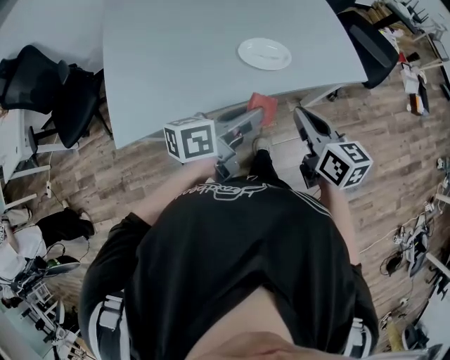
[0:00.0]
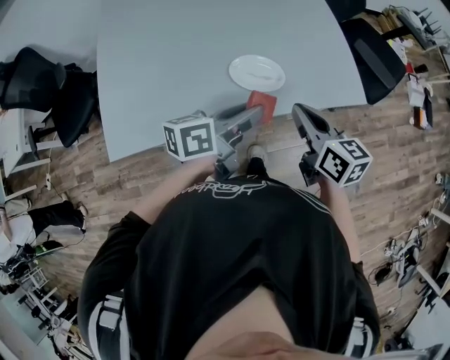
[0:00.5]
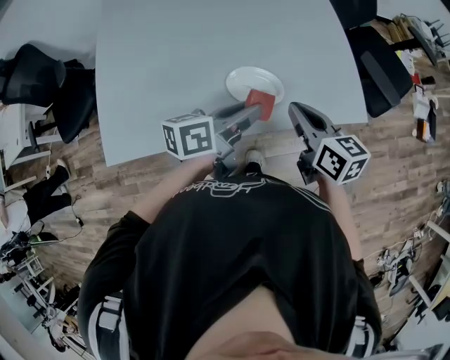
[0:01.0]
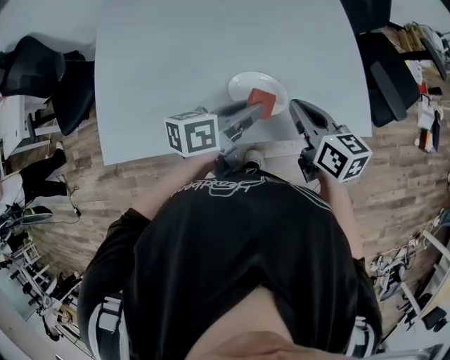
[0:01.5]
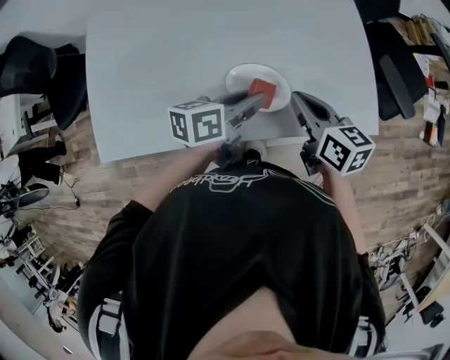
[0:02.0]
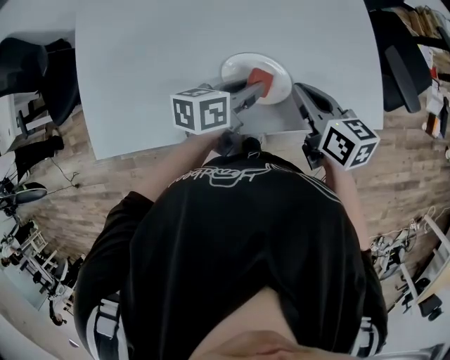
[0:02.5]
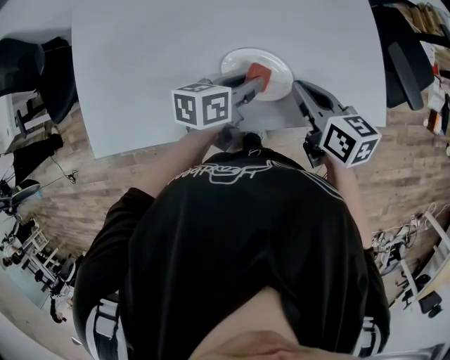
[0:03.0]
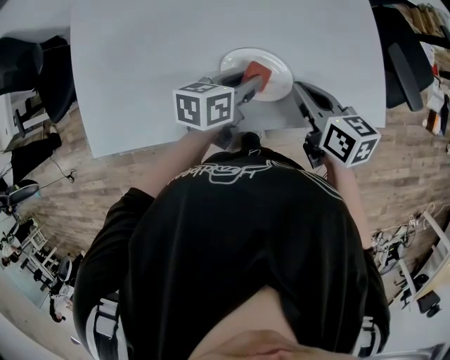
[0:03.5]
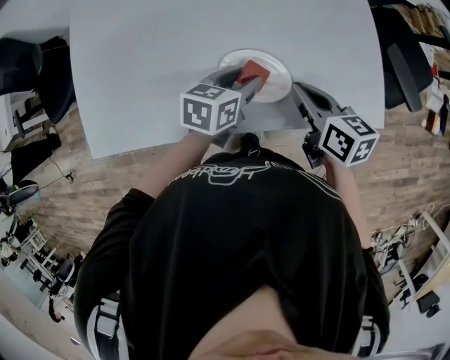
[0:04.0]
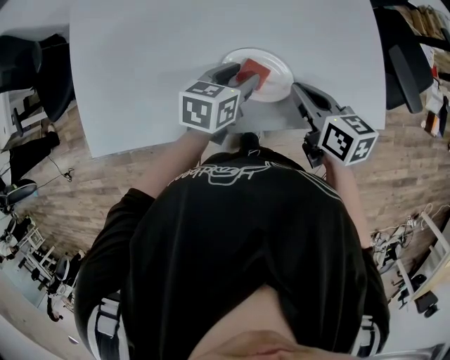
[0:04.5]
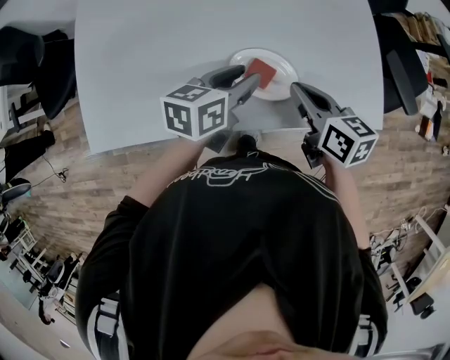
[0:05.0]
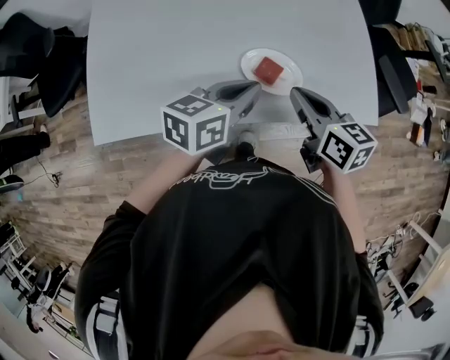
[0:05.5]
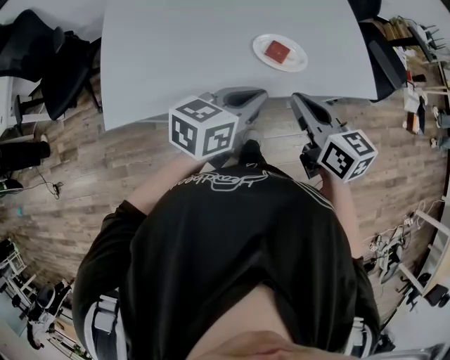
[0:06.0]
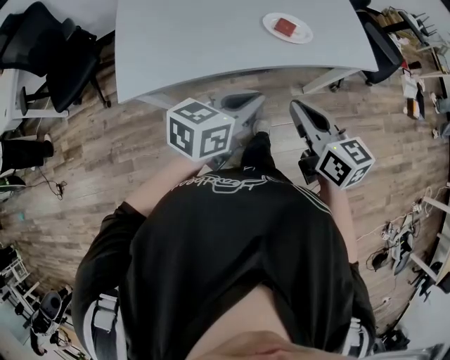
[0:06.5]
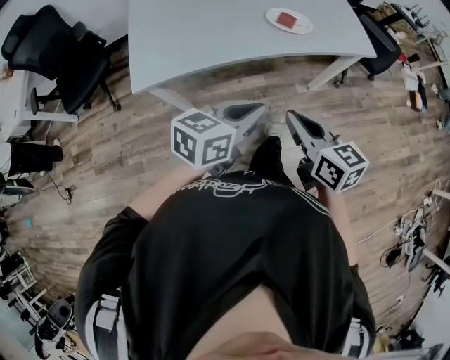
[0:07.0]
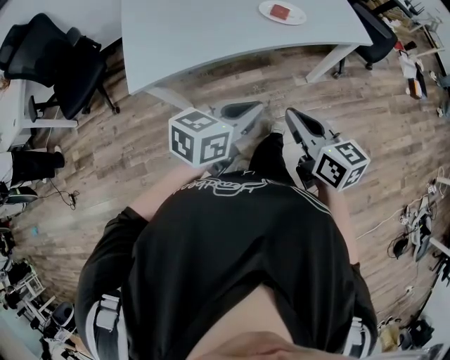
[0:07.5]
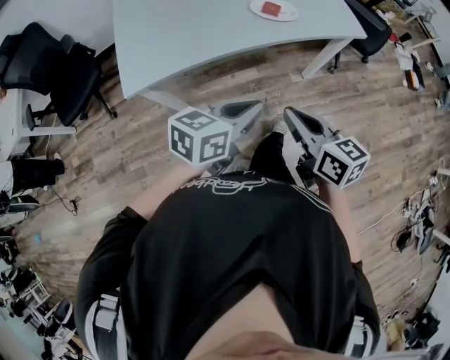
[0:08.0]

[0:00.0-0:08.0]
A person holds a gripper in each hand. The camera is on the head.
0:00.0 to 0:02.0: The left gripper travels forward and downward by about 25 cm. The right gripper moves forward, some 20 cm.
0:02.0 to 0:04.0: The left gripper goes some 5 cm downward, and turns by roughly 30 degrees.
0:04.0 to 0:06.0: The left gripper goes some 25 cm backward and upward, changes its angle by some 20 degrees, and closes its fingers; the right gripper heads backward, upward and to the left, covering roughly 25 cm.
0:06.0 to 0:08.0: The grippers both shift backward by approximately 25 cm.

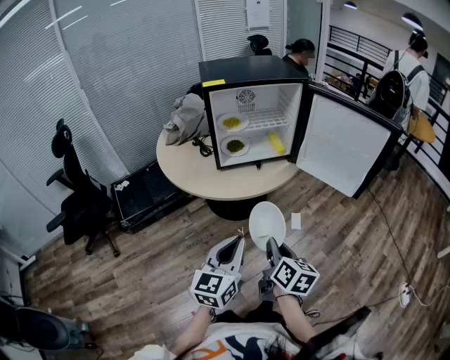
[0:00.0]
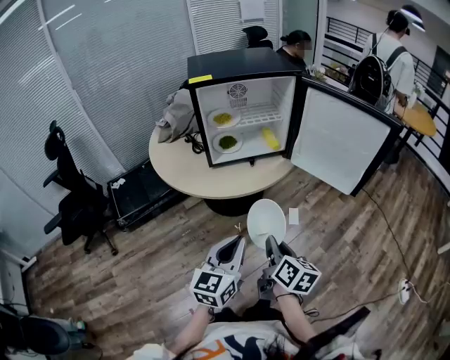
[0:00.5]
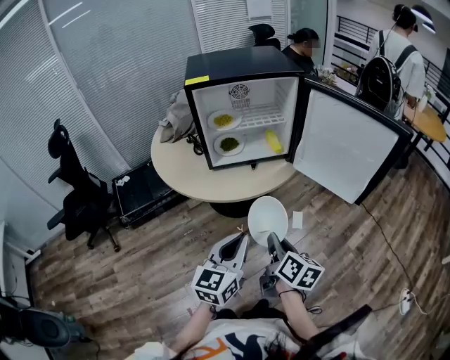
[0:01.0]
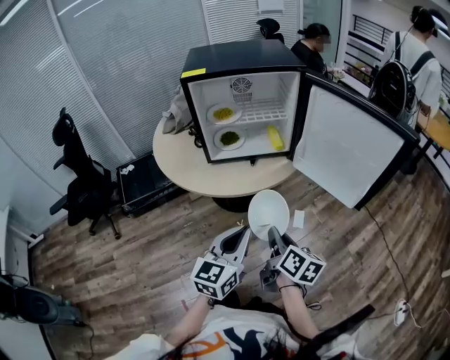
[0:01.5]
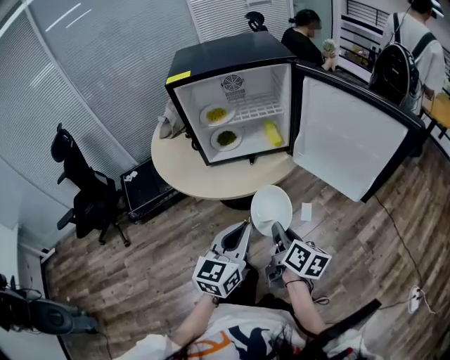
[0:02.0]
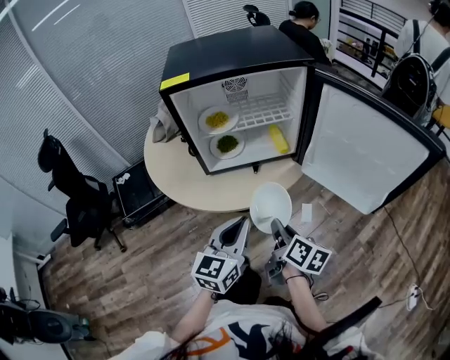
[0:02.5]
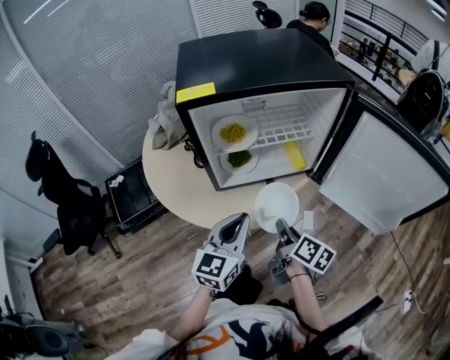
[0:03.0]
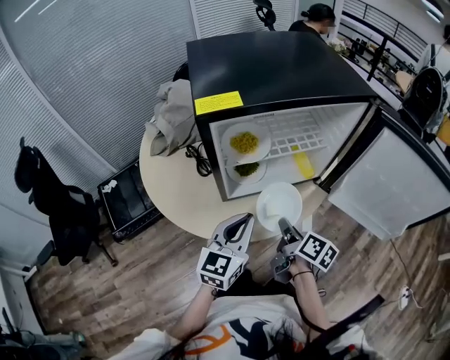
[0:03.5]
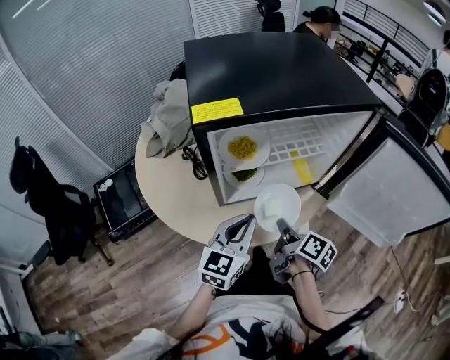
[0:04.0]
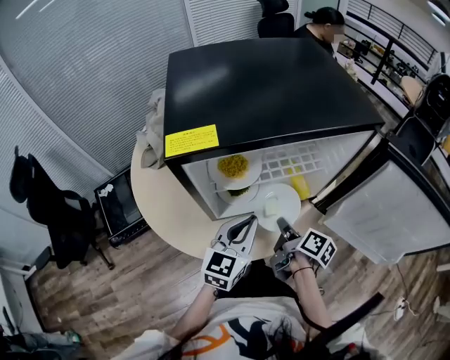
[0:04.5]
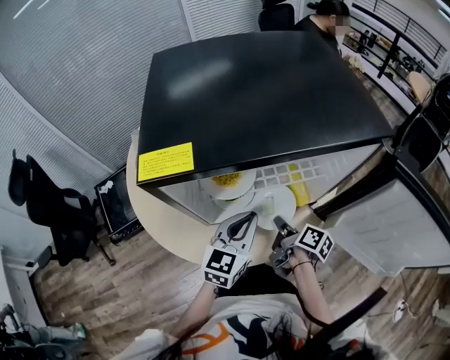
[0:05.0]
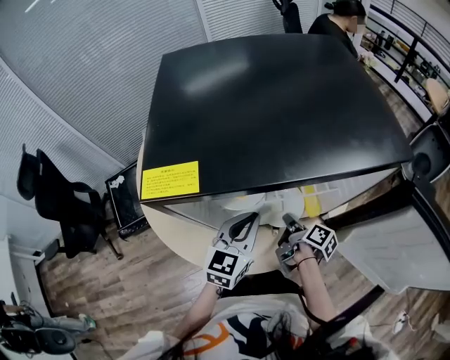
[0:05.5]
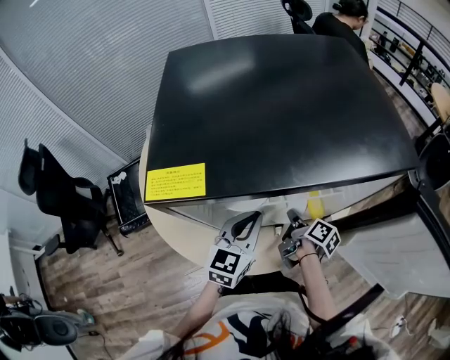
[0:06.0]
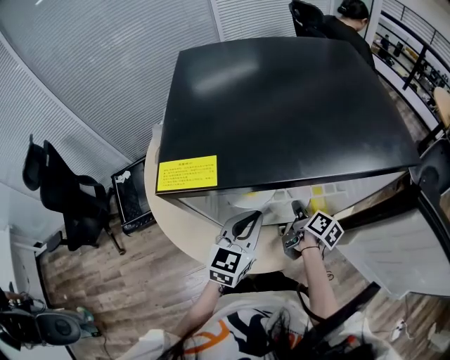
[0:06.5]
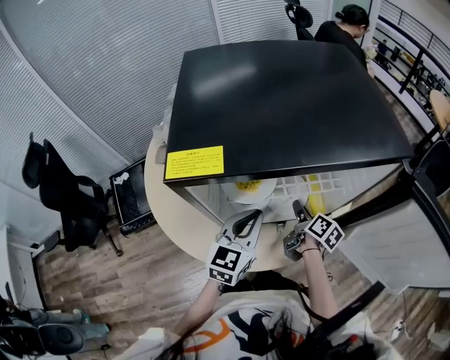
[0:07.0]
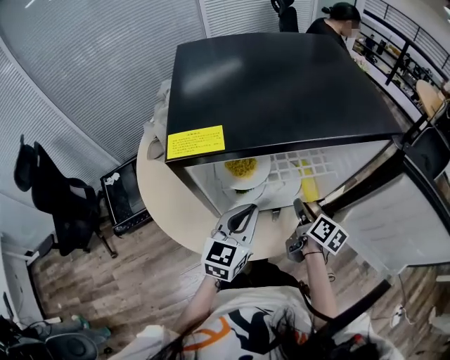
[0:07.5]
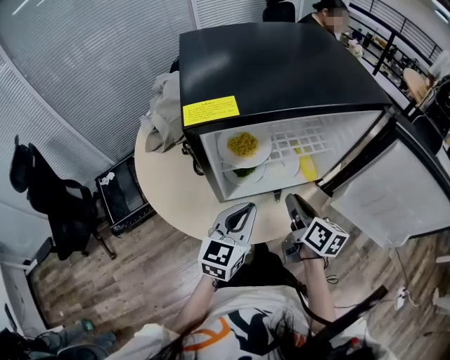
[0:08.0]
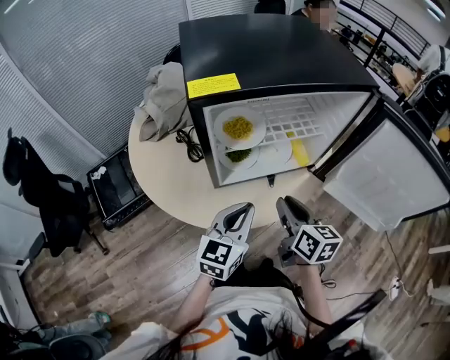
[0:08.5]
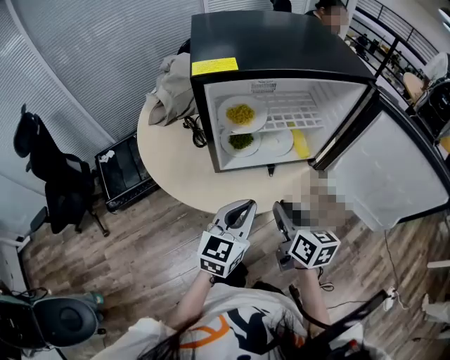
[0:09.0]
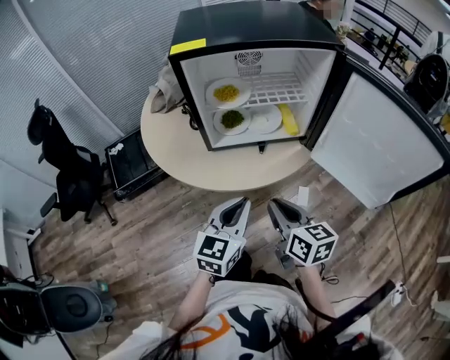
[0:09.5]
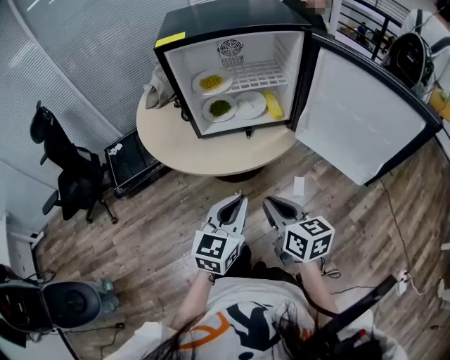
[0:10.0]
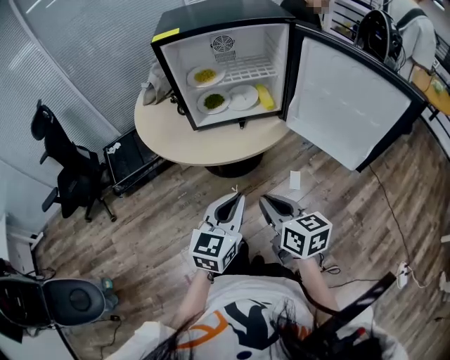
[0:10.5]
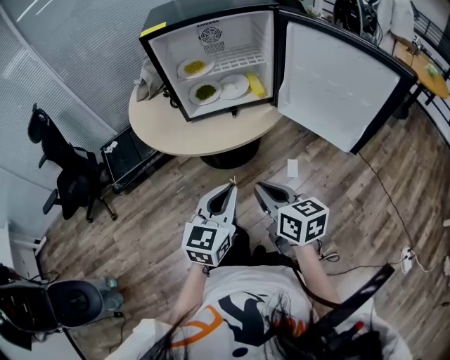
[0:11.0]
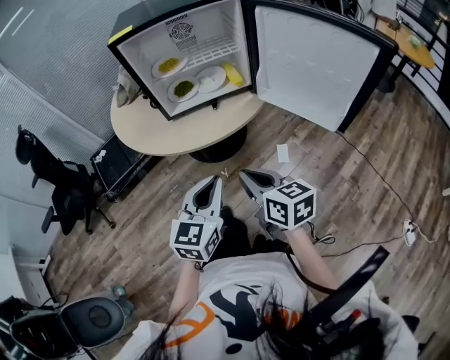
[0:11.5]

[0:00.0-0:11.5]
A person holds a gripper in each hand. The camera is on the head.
0:00.0 to 0:02.0: Both grippers move forward and to the right, roughly 15 cm.
0:02.0 to 0:04.0: The grippers both shift forward and to the left by approximately 25 cm.
0:04.0 to 0:06.0: The right gripper shifts approximately 20 cm forward and downward. The left gripper is displaced forward by approximately 15 cm.
0:06.0 to 0:07.5: The right gripper heads upward, covering about 5 cm, changes its angle by roughly 20 degrees, and opens up.
0:07.5 to 0:09.5: The two grippers go some 25 cm backward. The right gripper changes its angle by about 40 degrees, and closes its fingers.
0:09.5 to 0:11.5: Both grippers move backward, roughly 10 cm.

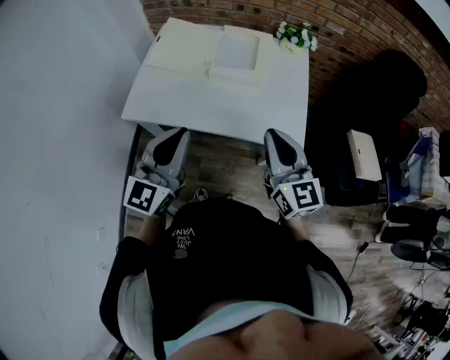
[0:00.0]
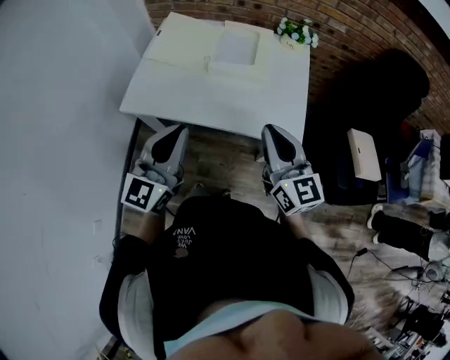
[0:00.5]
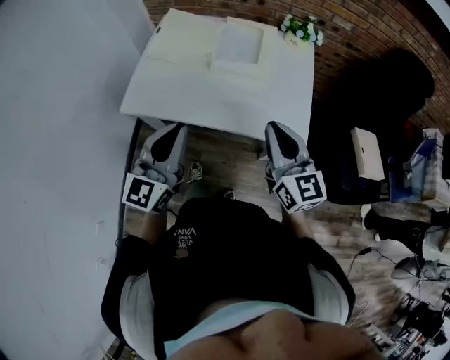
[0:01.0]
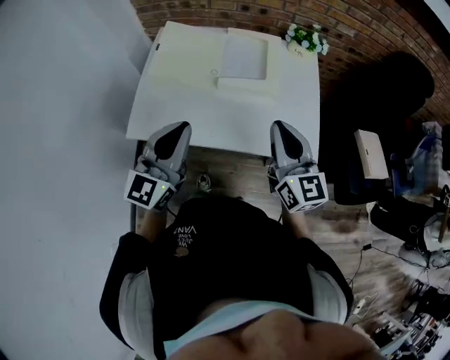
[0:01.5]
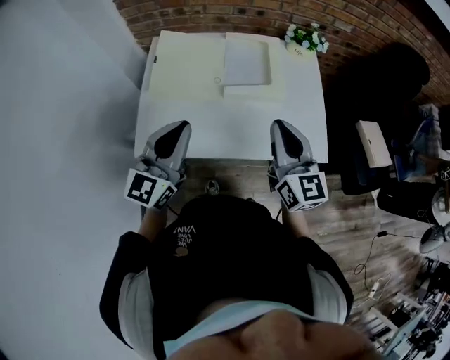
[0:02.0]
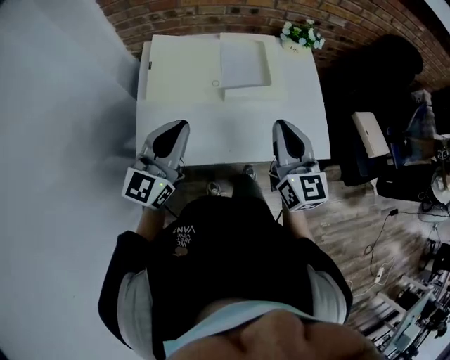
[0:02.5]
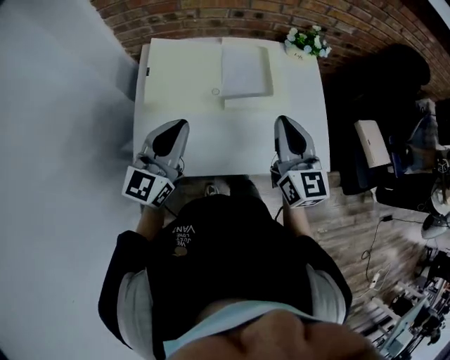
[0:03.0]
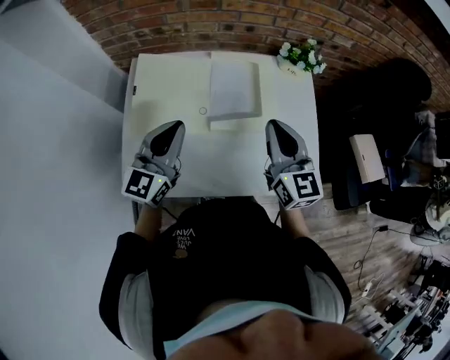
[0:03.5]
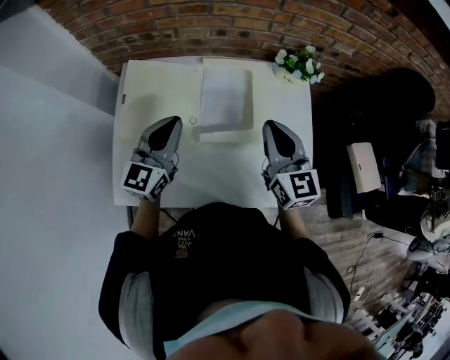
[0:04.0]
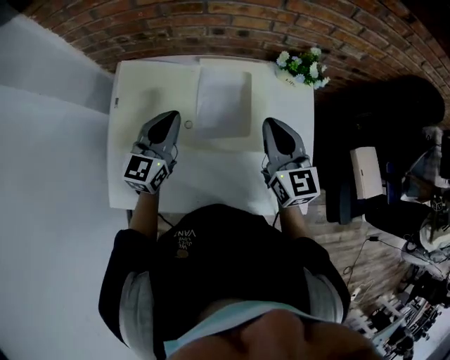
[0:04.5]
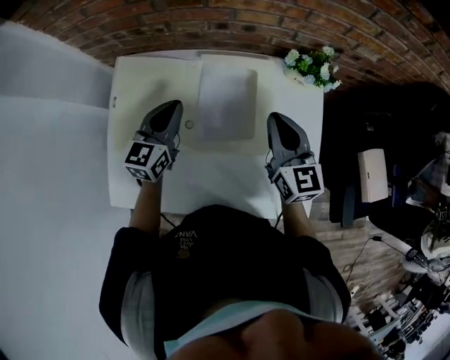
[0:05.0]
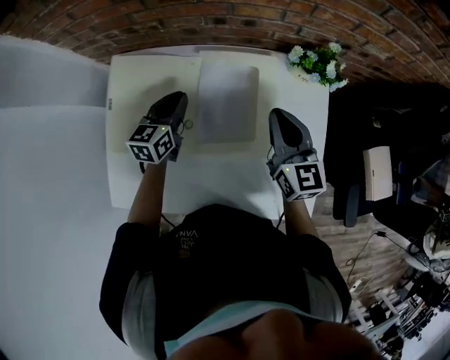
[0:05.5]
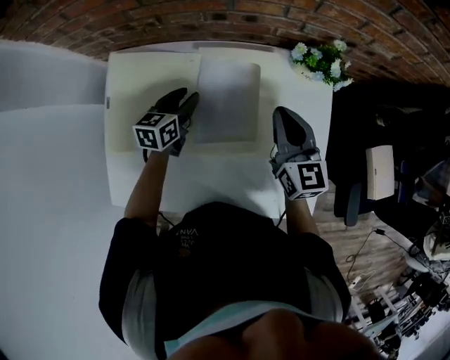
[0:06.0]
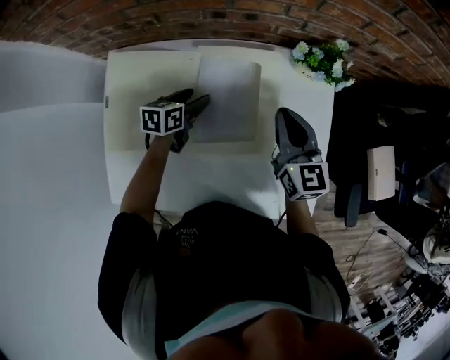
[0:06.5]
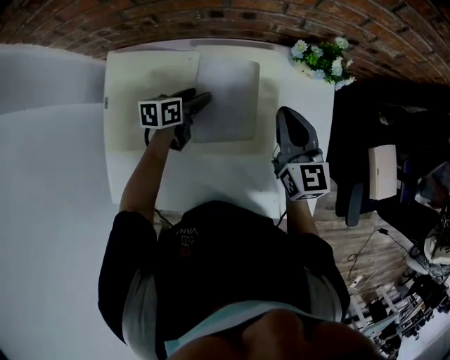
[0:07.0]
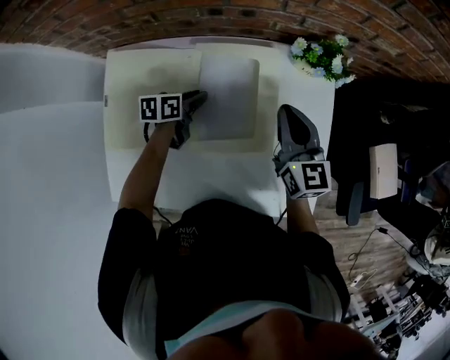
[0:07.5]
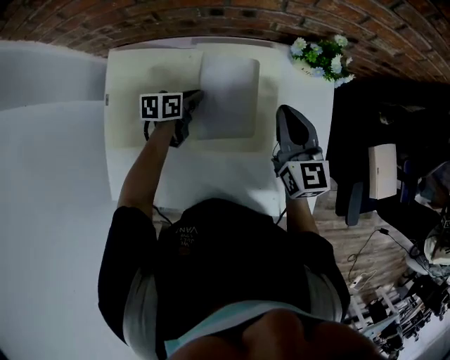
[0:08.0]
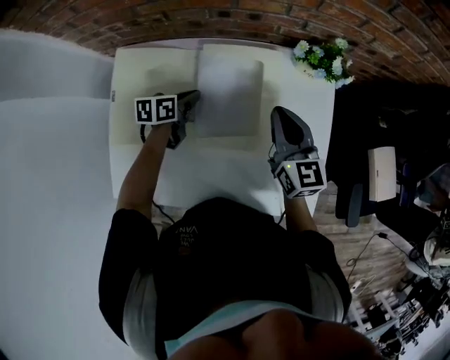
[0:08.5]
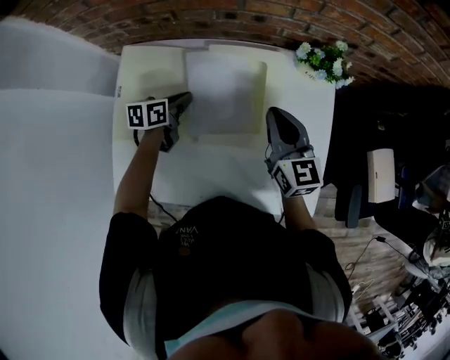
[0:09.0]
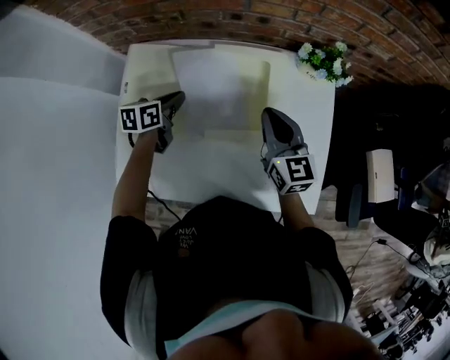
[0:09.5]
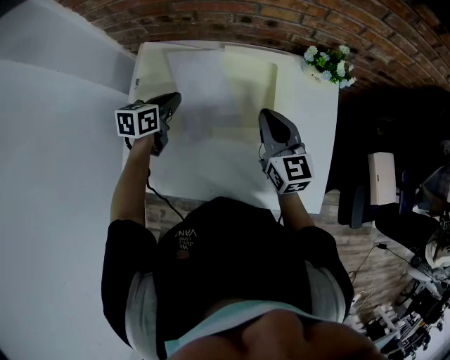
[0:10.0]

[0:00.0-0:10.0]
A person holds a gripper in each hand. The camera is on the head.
0:00.0 to 0:02.0: Both grippers travel together forward and to the left, approximately 15 cm.
0:02.0 to 0:04.0: The grippers both shift forward by about 20 cm.
0:04.0 to 0:06.0: The right gripper goes roughly 15 cm forward and downward, while the left gripper moves downward and forward, about 25 cm, swivels roughly 40 degrees, and opens.
0:06.0 to 0:08.0: The left gripper shifts approximately 5 cm downward, rotates about 20 degrees, and closes.
0:08.0 to 0:10.0: The right gripper shifts approximately 10 cm to the left and backward. Meanwhile the left gripper is displaced to the left, upward and backward by some 15 cm.
